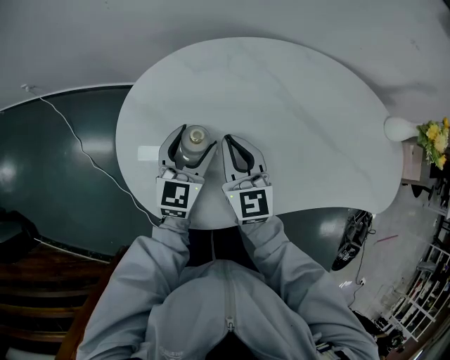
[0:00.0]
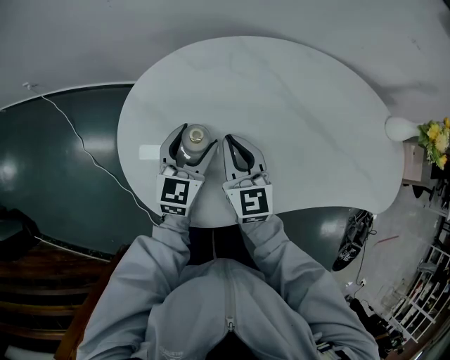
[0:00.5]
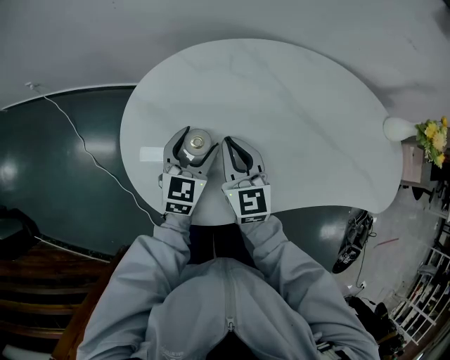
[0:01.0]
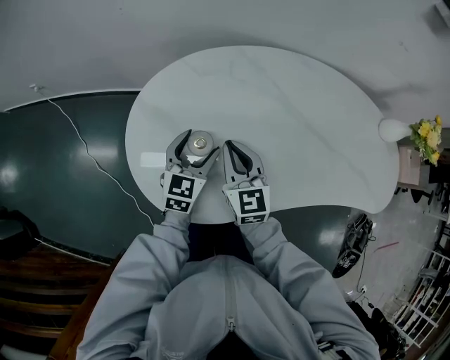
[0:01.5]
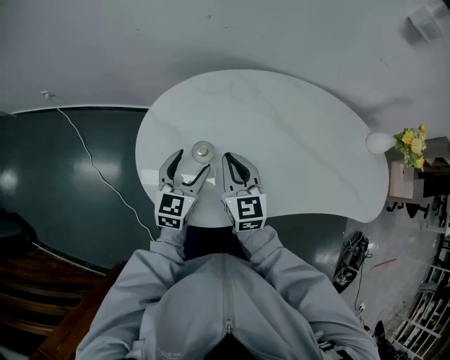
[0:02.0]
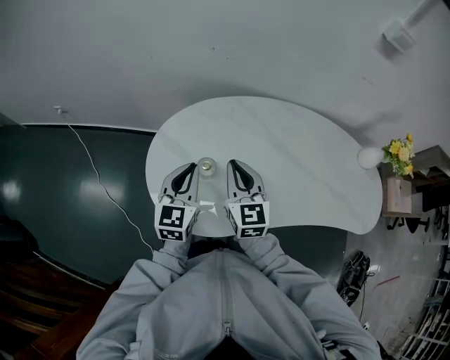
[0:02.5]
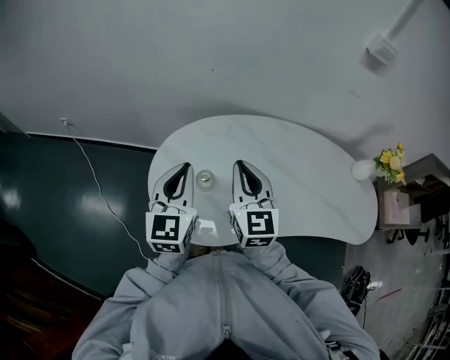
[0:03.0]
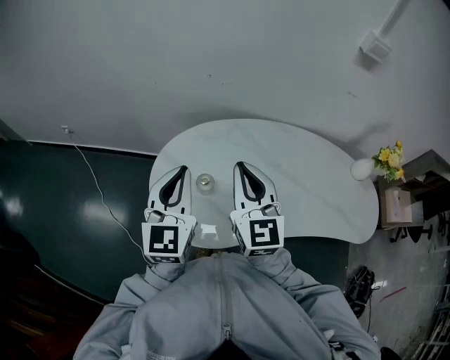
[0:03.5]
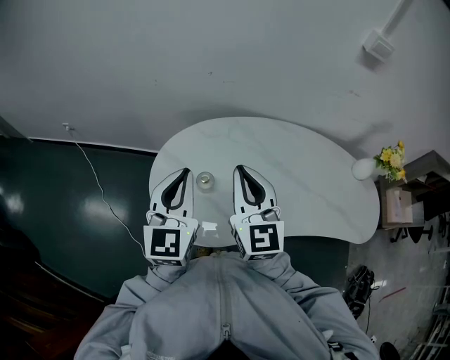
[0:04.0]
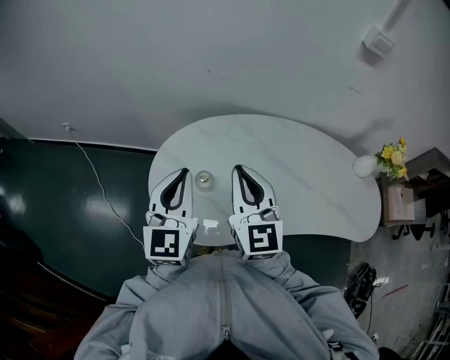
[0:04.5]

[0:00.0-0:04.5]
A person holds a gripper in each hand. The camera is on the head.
0:00.0 to 0:02.0: The left gripper shifts about 5 cm backward, while the right gripper changes place by about 5 cm.
0:02.0 to 0:04.5: The grippers both shift upward by roughly 25 cm. The left gripper rotates approximately 20 degrees, and closes its fingers.

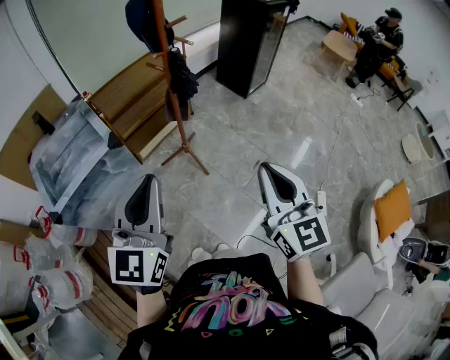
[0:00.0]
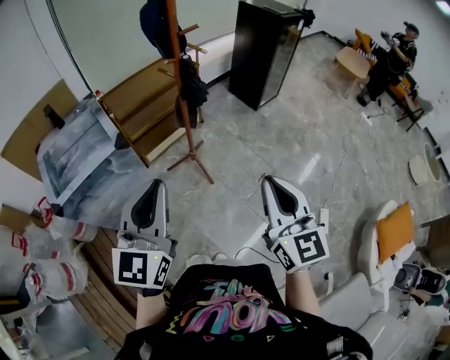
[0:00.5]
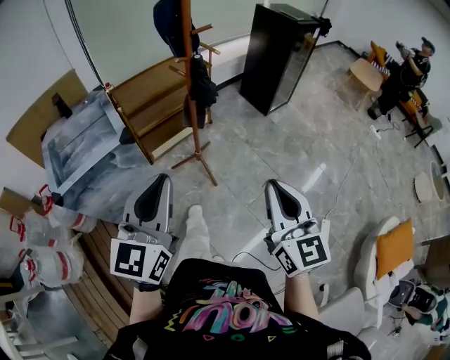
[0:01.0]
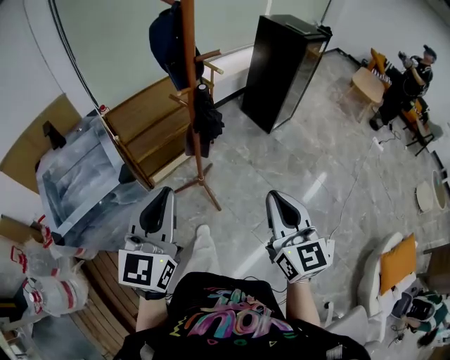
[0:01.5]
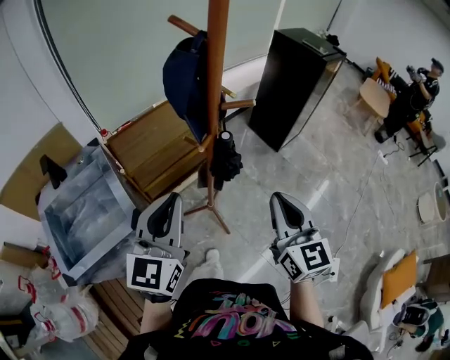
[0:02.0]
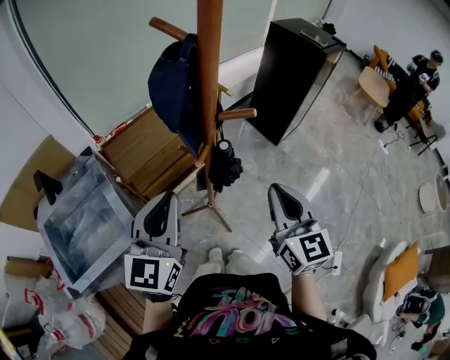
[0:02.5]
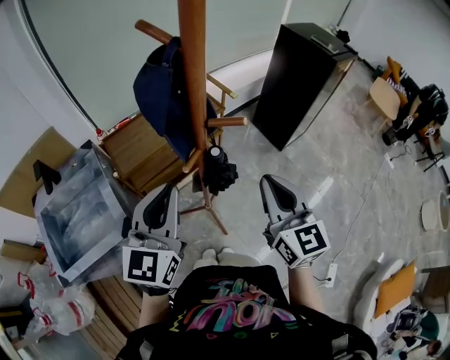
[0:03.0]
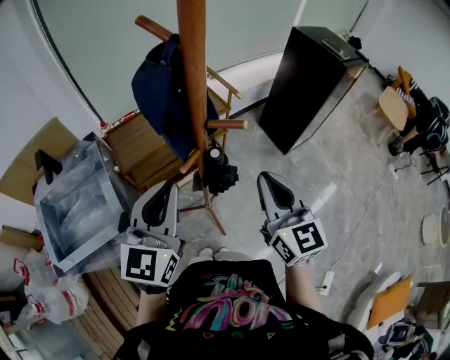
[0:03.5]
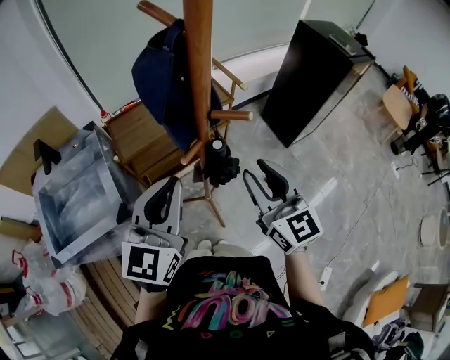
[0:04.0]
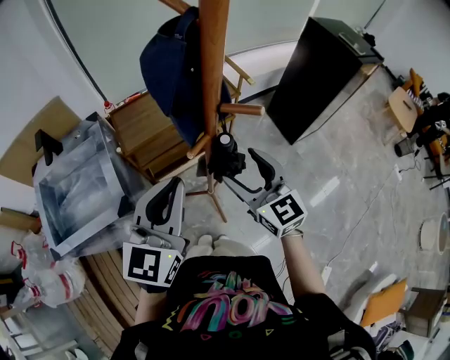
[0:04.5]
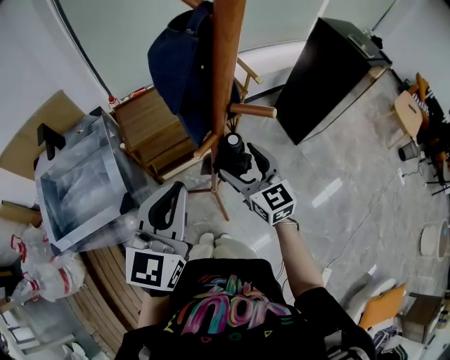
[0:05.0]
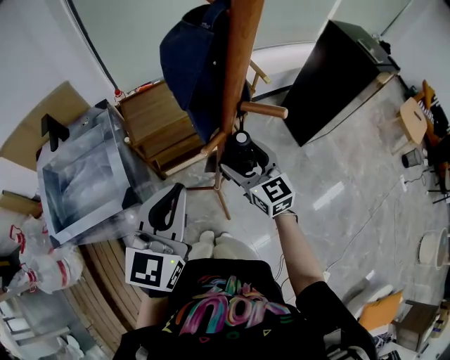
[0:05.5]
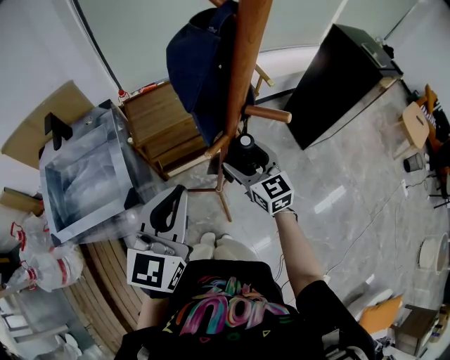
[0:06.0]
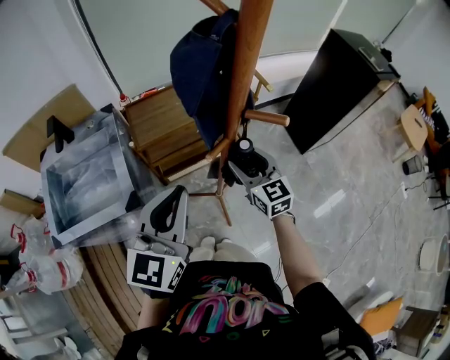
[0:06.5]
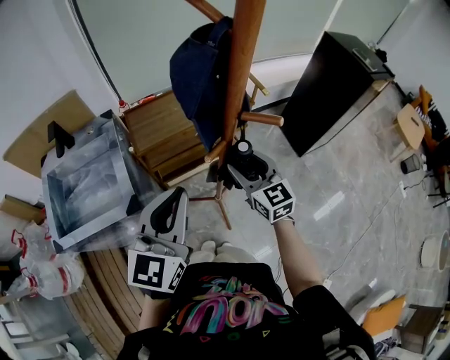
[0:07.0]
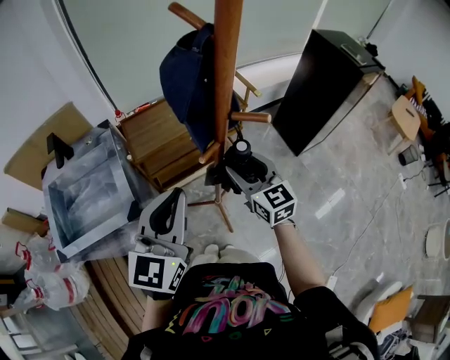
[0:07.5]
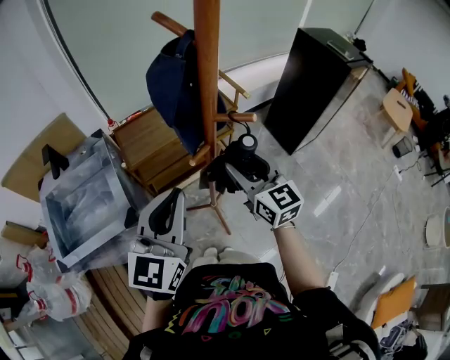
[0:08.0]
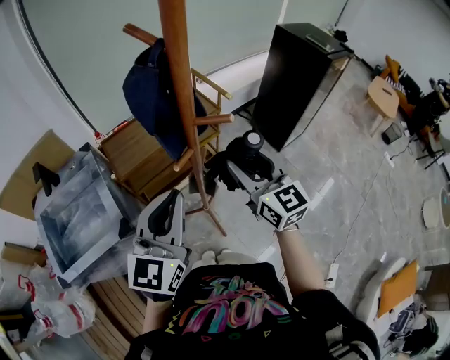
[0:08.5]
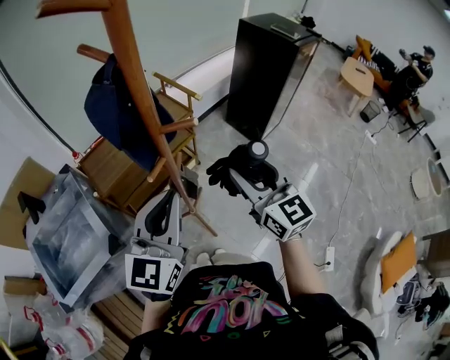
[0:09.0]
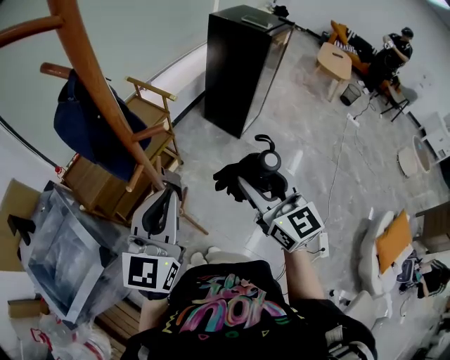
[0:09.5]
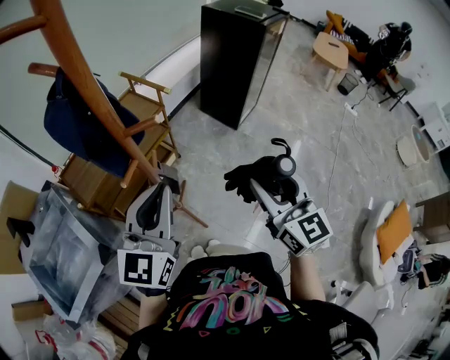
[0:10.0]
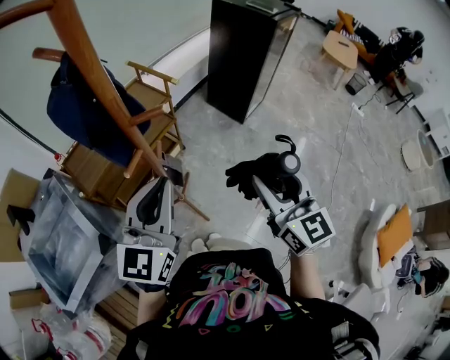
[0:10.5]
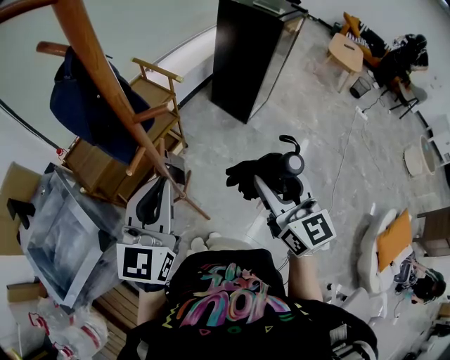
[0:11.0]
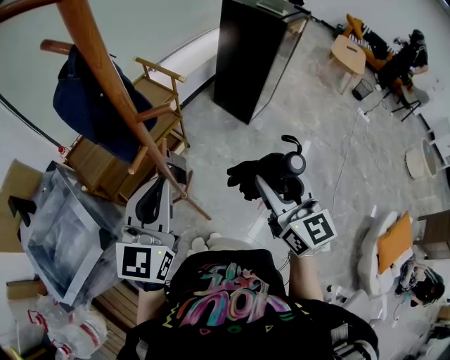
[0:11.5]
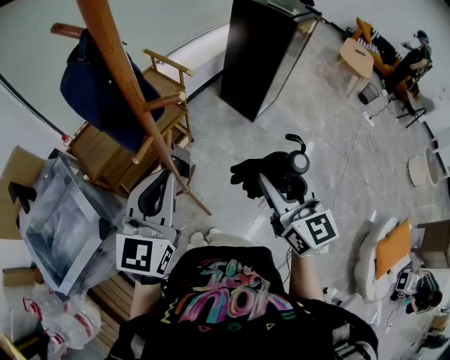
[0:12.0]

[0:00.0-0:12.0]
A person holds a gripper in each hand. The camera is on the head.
0:00.0 to 0:02.0: The two grippers go about 35 cm forward.
0:02.0 to 0:04.0: The right gripper heads forward, covering roughly 15 cm, and swivels about 20 degrees. Meanwhile the left gripper goes approximately 10 cm forward and to the right.
0:04.0 to 0:06.0: The left gripper moves roughly 5 cm; the right gripper moves downward, forward and to the left, approximately 20 cm, and opens.
0:06.0 to 0:08.0: The right gripper moves upward, approximately 10 cm, and closes its fingers.
0:08.0 to 0:10.0: The right gripper heads to the right and backward, covering approximately 25 cm, and swivels about 30 degrees, while the left gripper goes approximately 10 cm to the right, and rotates some 20 degrees.
0:10.0 to 0:12.0: The grippers make only small movements.

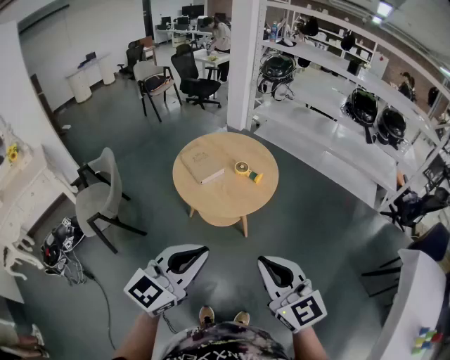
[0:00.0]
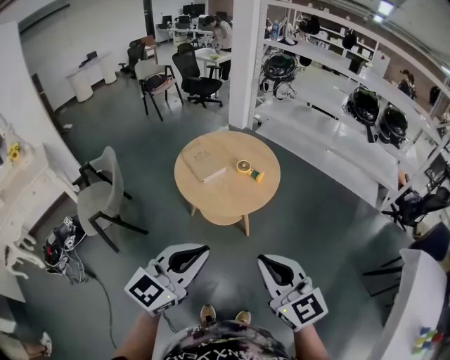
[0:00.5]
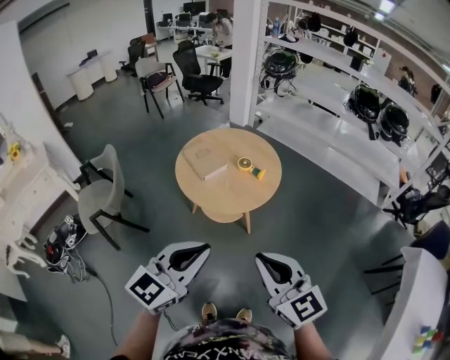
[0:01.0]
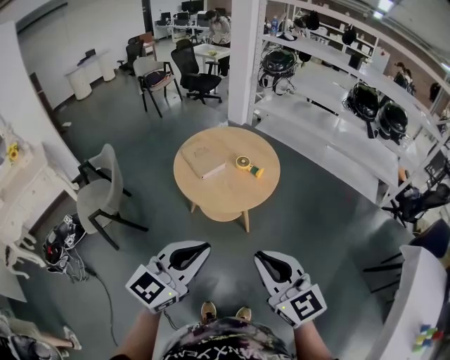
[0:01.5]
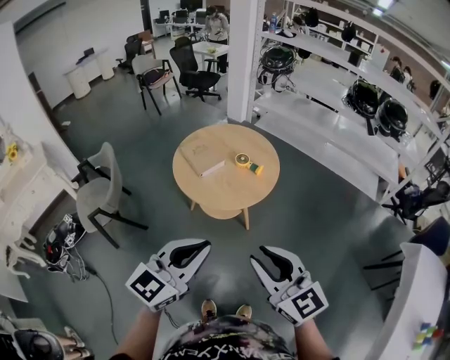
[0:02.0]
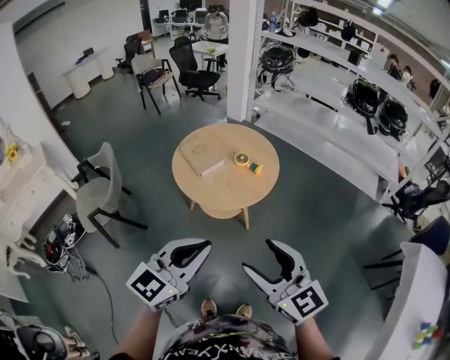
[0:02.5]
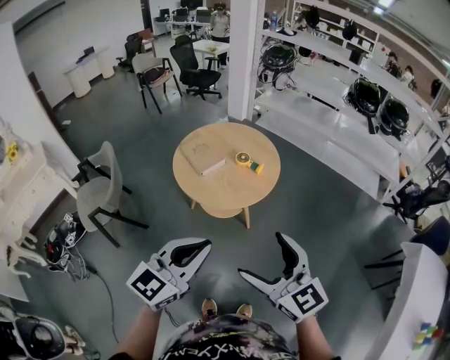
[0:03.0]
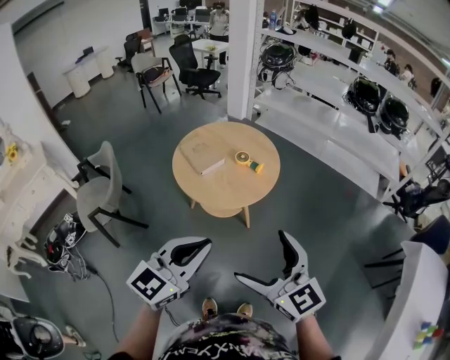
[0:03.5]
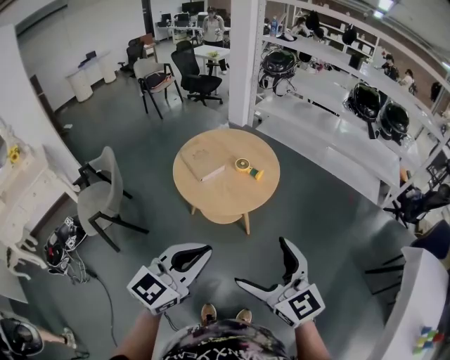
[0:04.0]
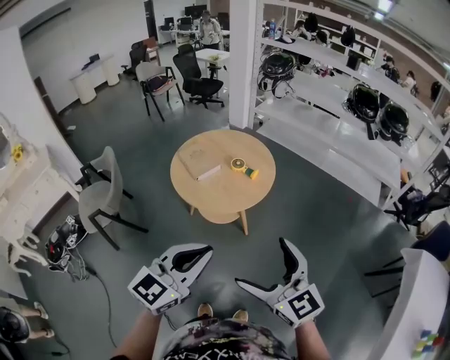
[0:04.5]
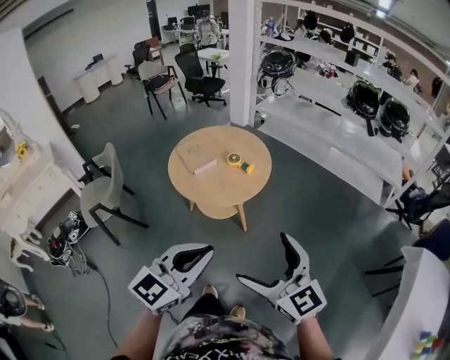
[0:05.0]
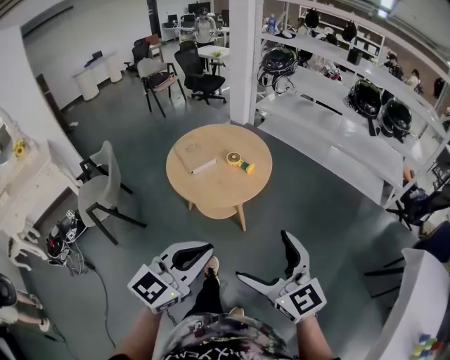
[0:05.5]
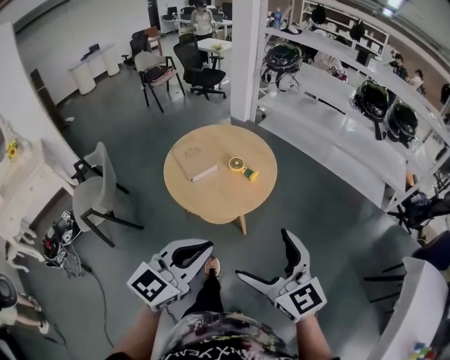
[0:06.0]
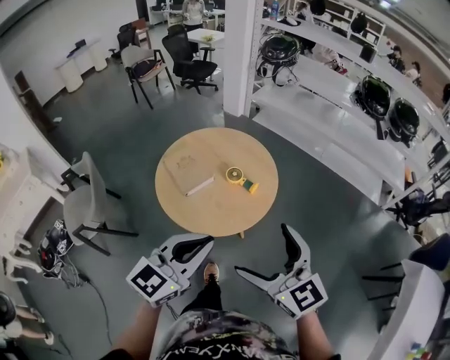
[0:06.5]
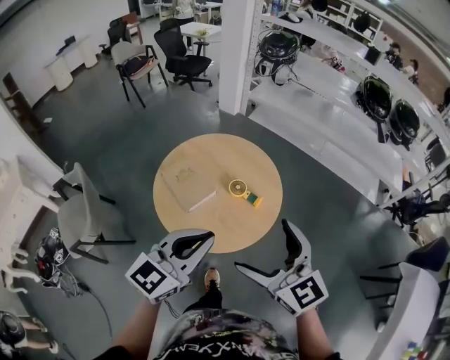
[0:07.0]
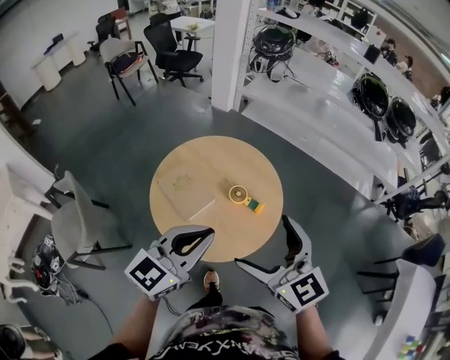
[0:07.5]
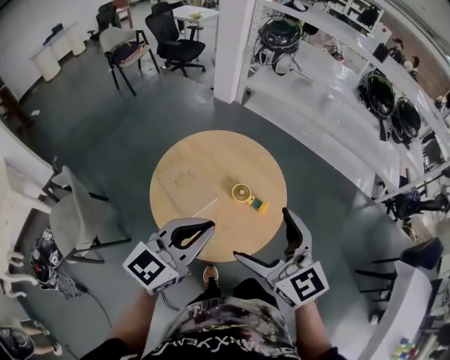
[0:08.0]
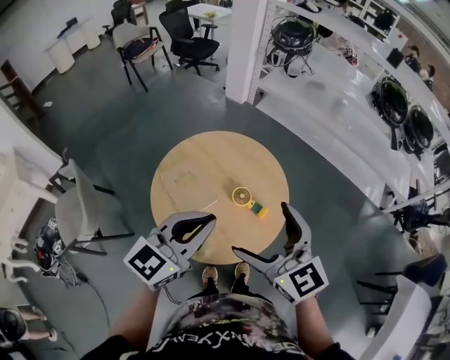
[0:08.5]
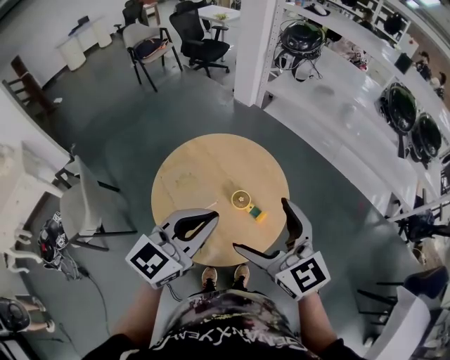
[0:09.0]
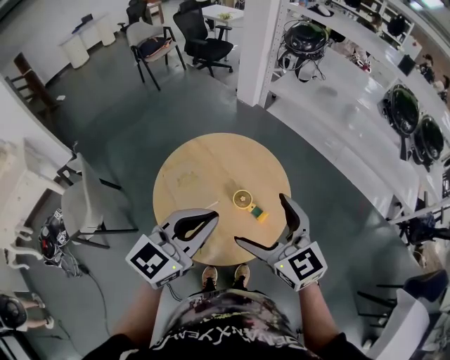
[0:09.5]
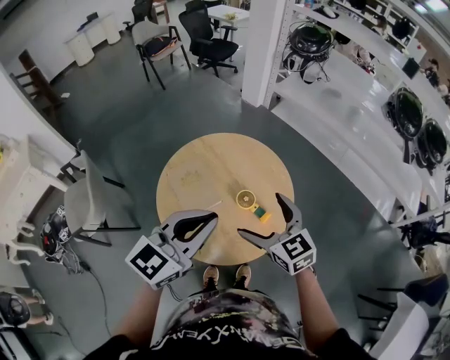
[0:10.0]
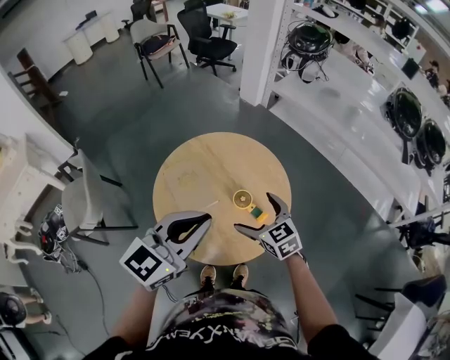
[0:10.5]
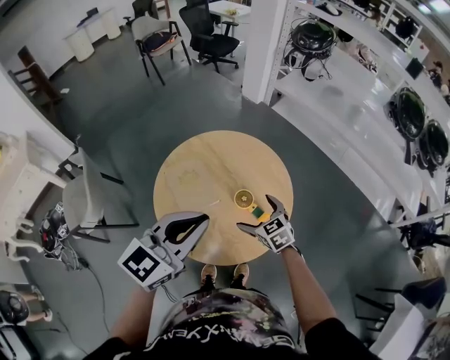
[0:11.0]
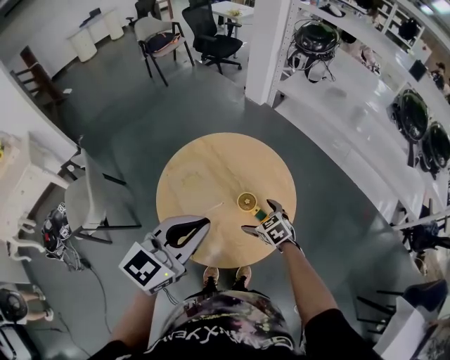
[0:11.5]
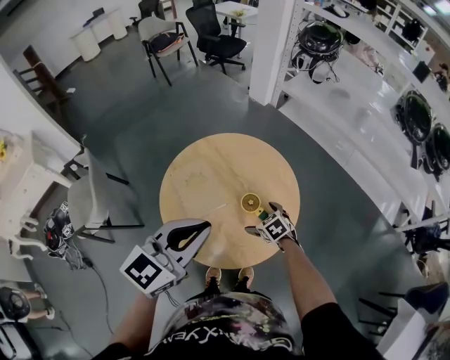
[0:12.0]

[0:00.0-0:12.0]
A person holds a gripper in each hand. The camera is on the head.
0:00.0 to 0:02.0: Neither gripper changes place.
0:02.0 to 0:04.0: The right gripper opens up.
0:04.0 to 0:06.0: The two grippers go approximately 10 cm forward and to the right.
0:06.0 to 0:08.0: The left gripper moves forward, some 35 cm. The right gripper goes some 35 cm forward and to the left.
0:08.0 to 0:10.0: The right gripper is displaced downward and forward by approximately 15 cm, while the left gripper ends up approximately 5 cm from where it was.
0:10.0 to 0:12.0: The right gripper is displaced downward by roughly 30 cm, and angles its fingers downward, by some 40 degrees.
